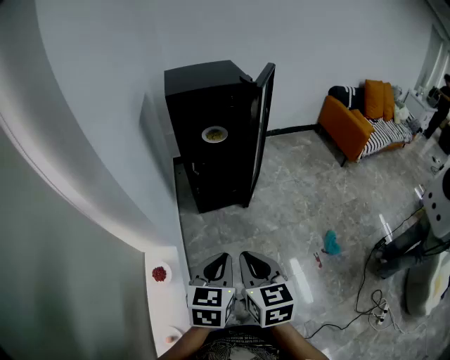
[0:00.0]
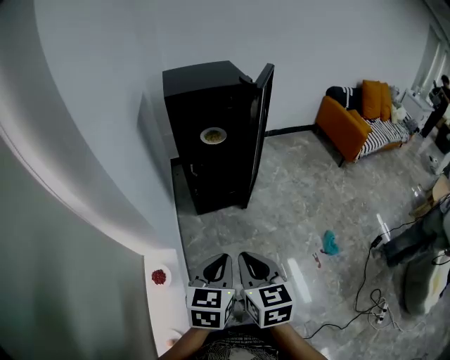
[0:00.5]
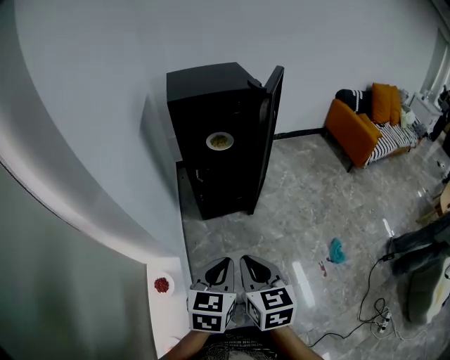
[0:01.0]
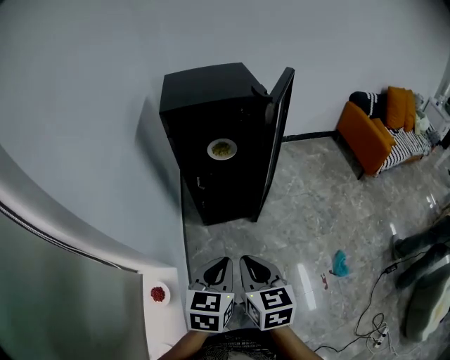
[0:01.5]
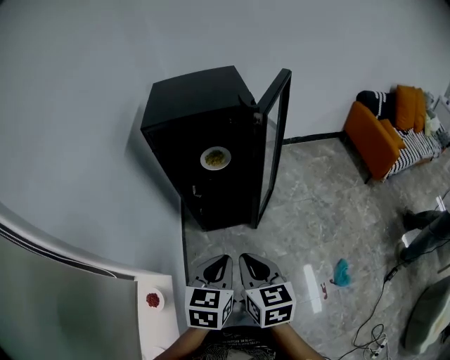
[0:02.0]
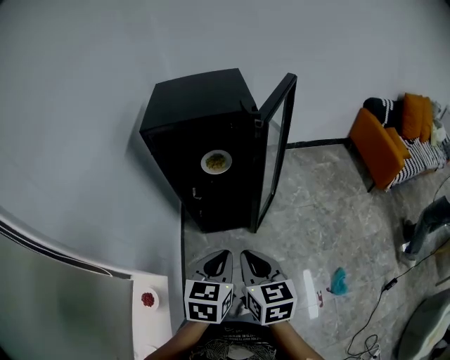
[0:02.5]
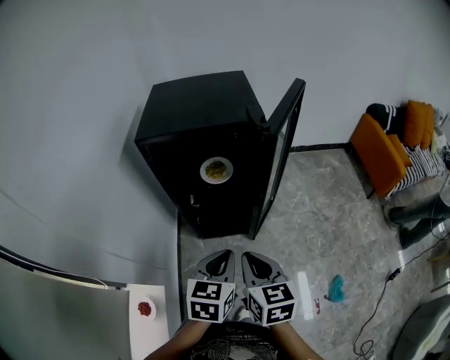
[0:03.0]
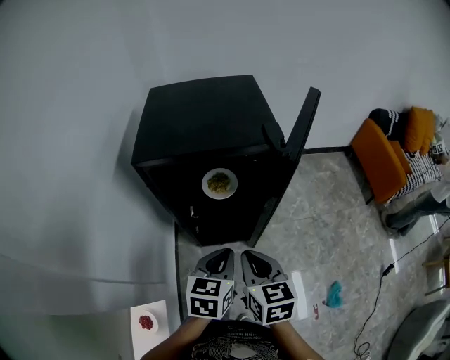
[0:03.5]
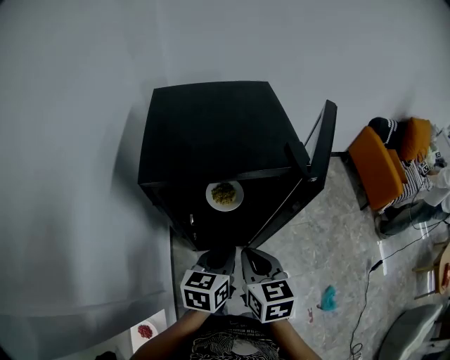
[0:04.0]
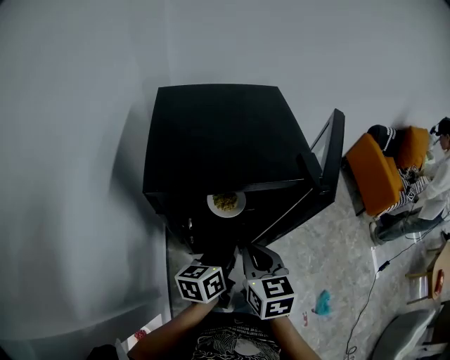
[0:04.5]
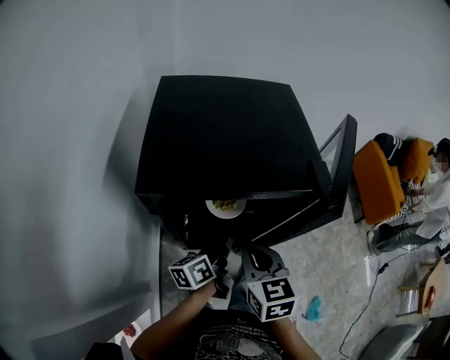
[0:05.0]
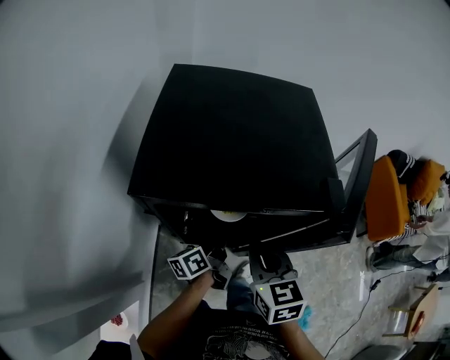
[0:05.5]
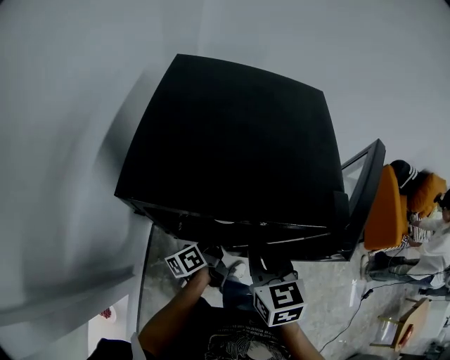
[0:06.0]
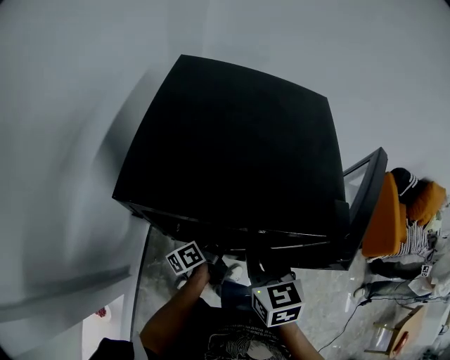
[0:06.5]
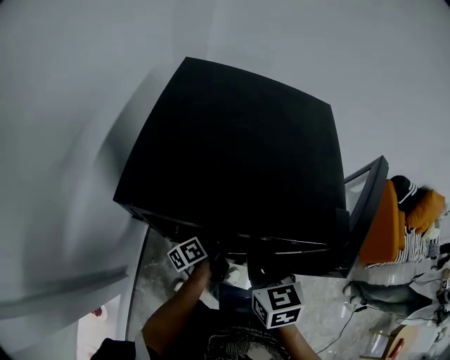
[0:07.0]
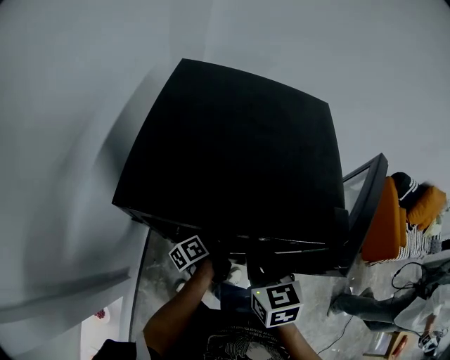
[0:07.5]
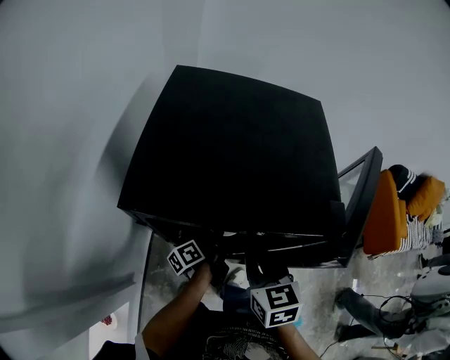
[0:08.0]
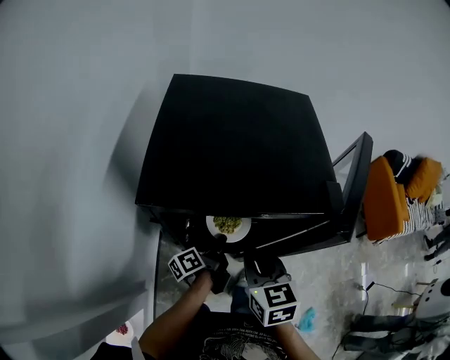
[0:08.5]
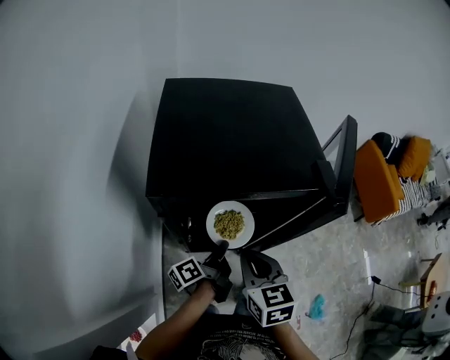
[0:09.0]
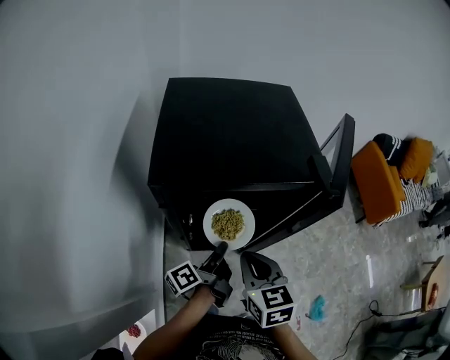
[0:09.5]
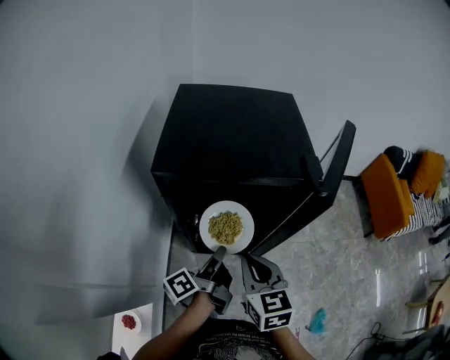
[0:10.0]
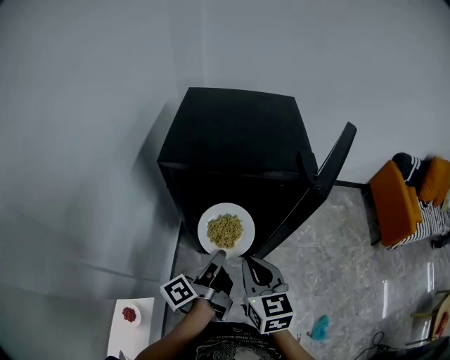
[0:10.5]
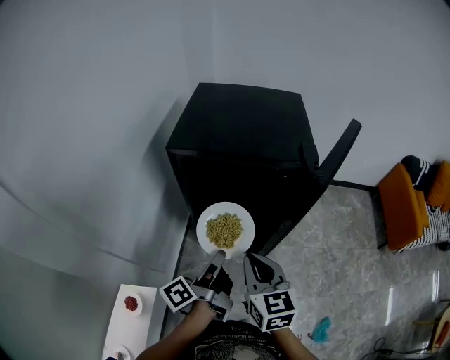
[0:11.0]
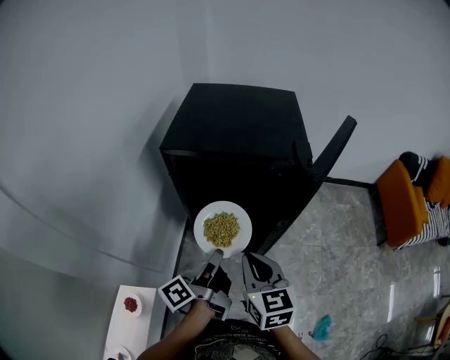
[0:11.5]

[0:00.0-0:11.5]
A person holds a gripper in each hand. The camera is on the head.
0:00.0 to 0:02.0: Both grippers move forward, about 25 cm.
0:02.0 to 0:04.0: The grippers both shift forward by about 30 cm.
0:04.0 to 0:06.0: The left gripper heads downward and forward, covering some 20 cm, and twists approximately 50 degrees counterclockwise, seen from behind; the right gripper goes about 10 cm forward.
0:06.0 to 0:07.5: The grippers make only small movements.
0:07.5 to 0:09.5: The right gripper shifts about 10 cm backward. Meanwhile the left gripper heads backward and upward, covering roughly 20 cm.
0:09.5 to 0:11.5: The left gripper travels backward and upward by some 15 cm, while the right gripper moves backward, some 10 cm.

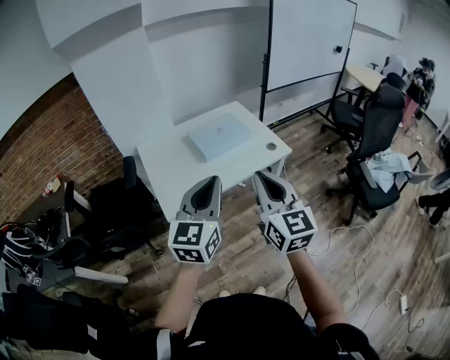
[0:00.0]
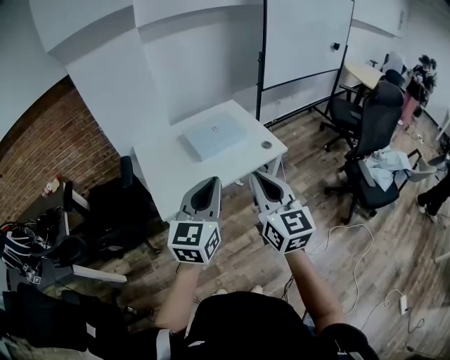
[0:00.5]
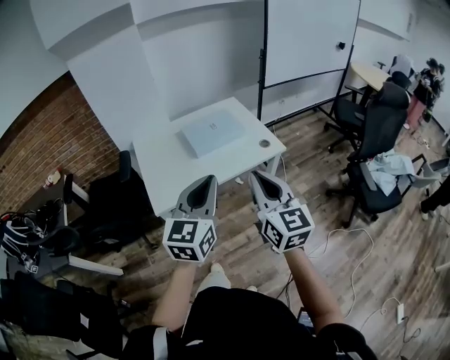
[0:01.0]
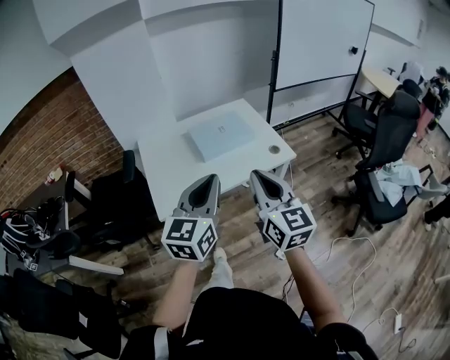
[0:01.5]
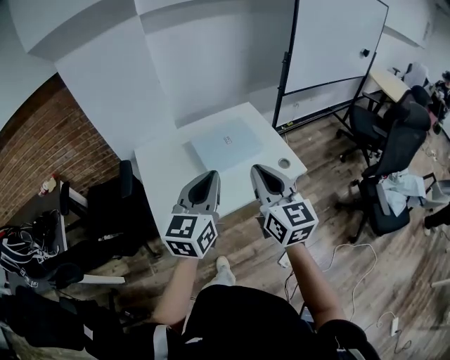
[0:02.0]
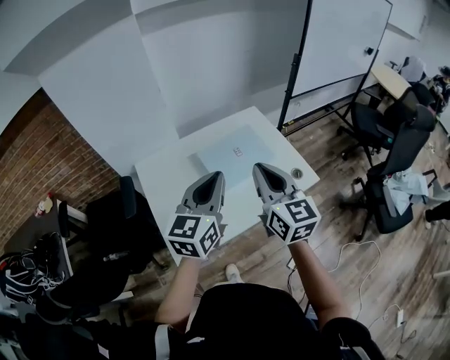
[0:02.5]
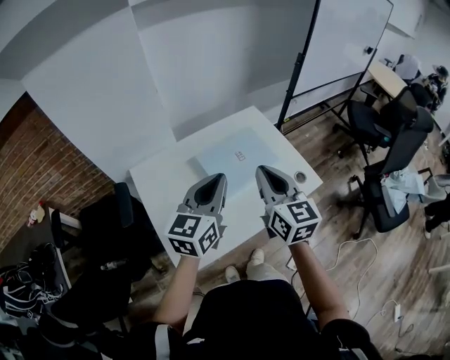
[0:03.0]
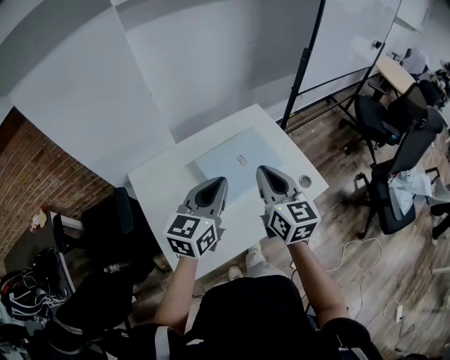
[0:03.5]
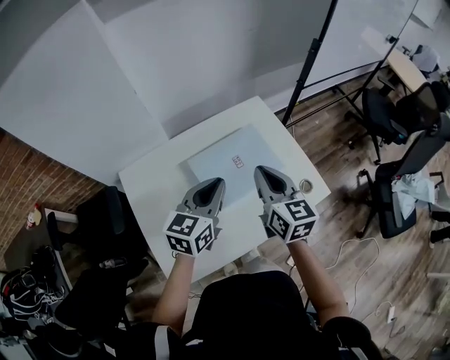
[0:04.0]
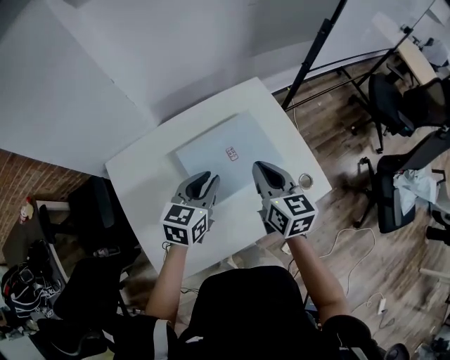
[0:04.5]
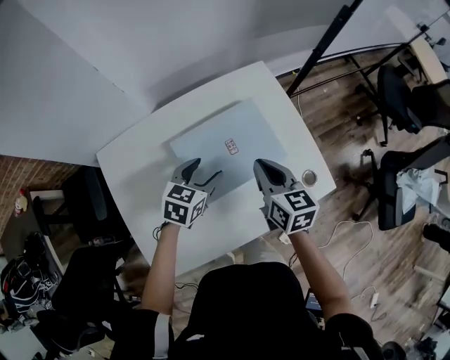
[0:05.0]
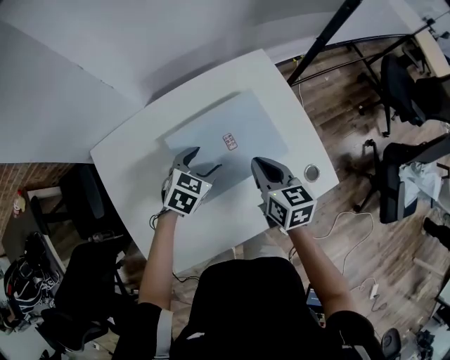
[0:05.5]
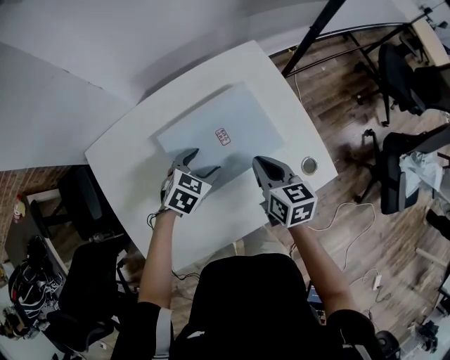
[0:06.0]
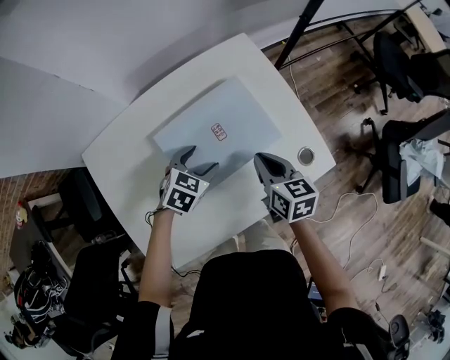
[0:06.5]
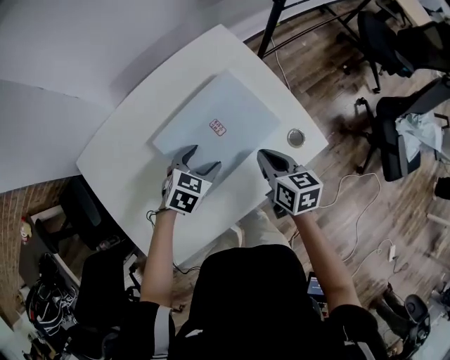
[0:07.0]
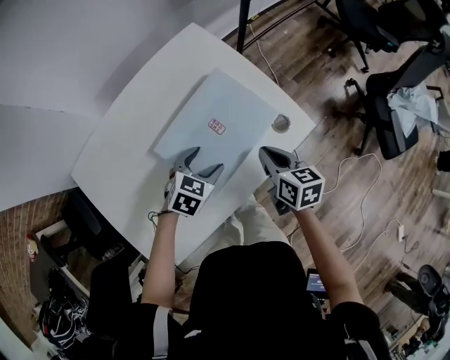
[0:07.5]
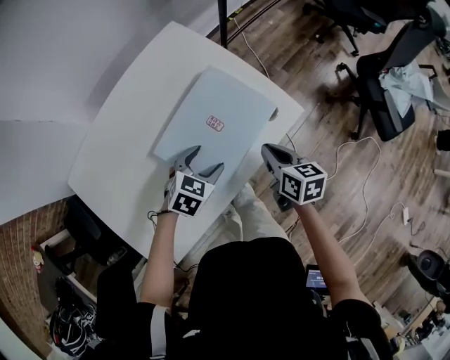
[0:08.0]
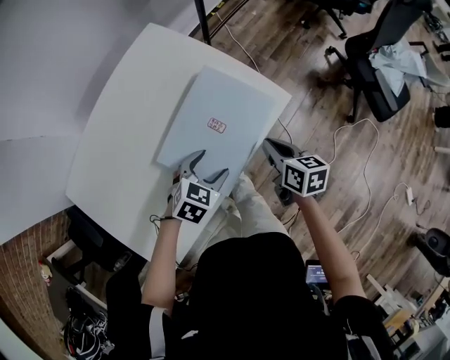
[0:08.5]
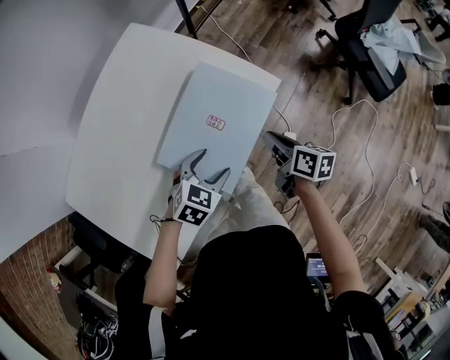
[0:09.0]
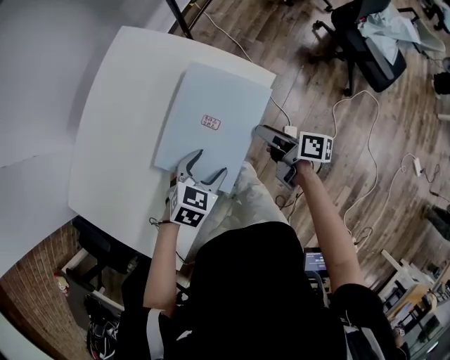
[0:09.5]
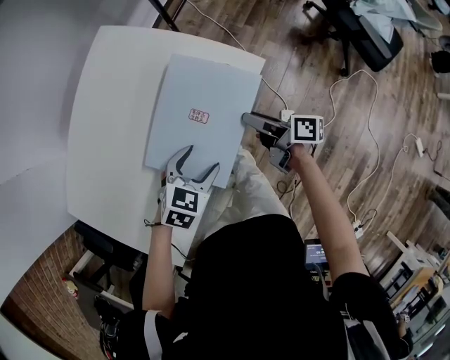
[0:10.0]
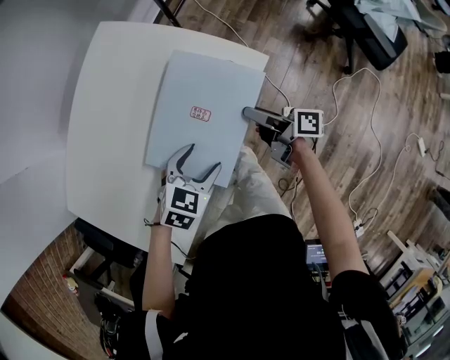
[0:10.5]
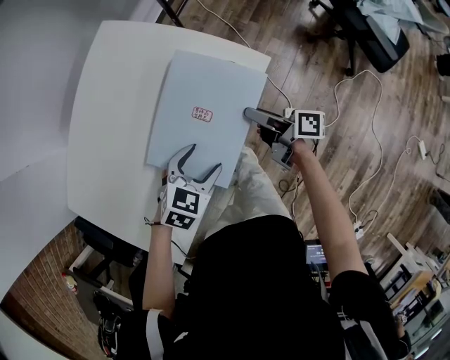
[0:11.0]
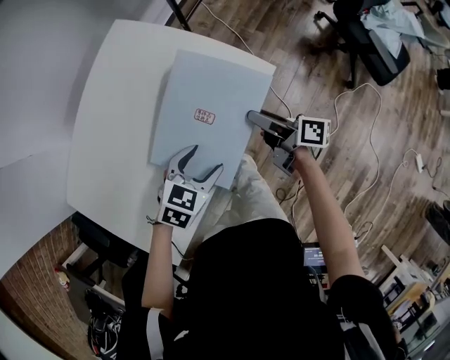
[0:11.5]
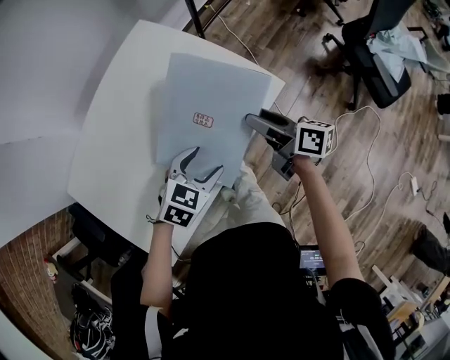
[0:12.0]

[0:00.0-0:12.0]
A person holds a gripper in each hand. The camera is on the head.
0:00.0 to 0:02.0: The two grippers go approximately 20 cm forward.
0:02.0 to 0:04.0: The grippers both shift forward and downward by approximately 30 cm.
0:04.0 to 0:06.0: The grippers both shift downward by roughly 20 cm. The right gripper changes its angle by approximately 20 degrees; the left gripper points its fingers about 40 degrees further downward, and opens its fingers.
0:06.0 to 0:08.0: Both grippers travel together to the right and backward, some 20 cm. The right gripper turns by roughly 20 degrees.
0:08.0 to 0:10.0: The right gripper is displaced to the right and downward by approximately 10 cm, rotates around the line of its fingers by about 40 degrees, clockwise from behind, and opens its fingers; the left gripper shifts roughly 10 cm to the right and backward.
0:10.0 to 0:12.0: The right gripper is displaced upward by some 10 cm.

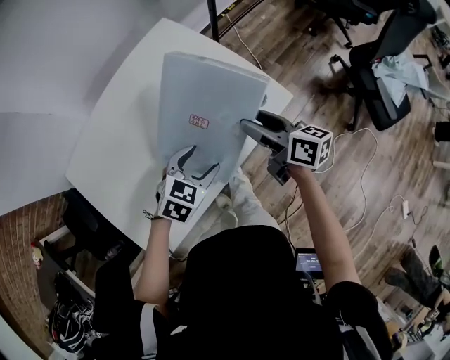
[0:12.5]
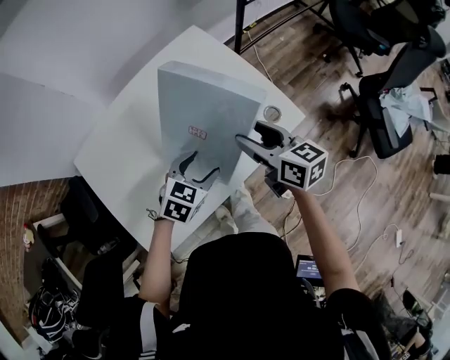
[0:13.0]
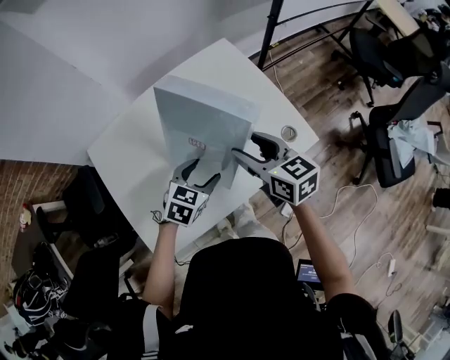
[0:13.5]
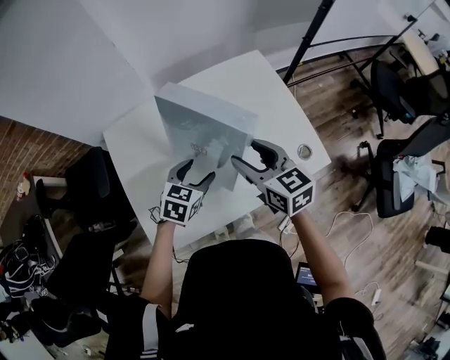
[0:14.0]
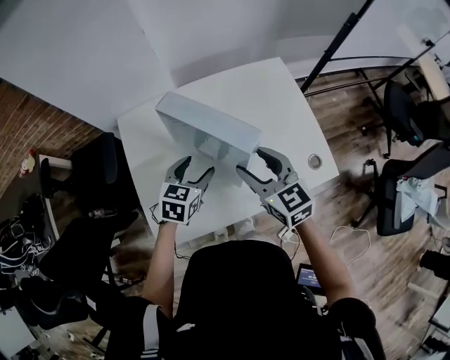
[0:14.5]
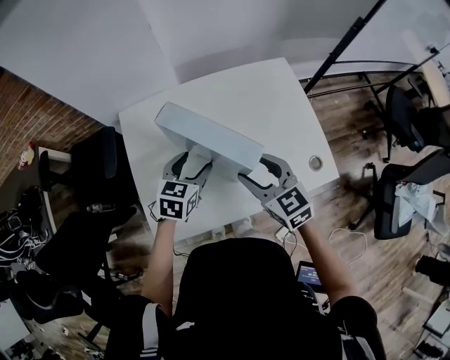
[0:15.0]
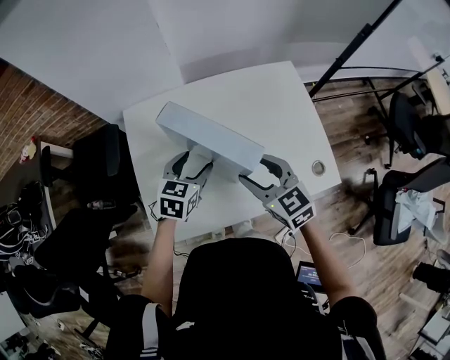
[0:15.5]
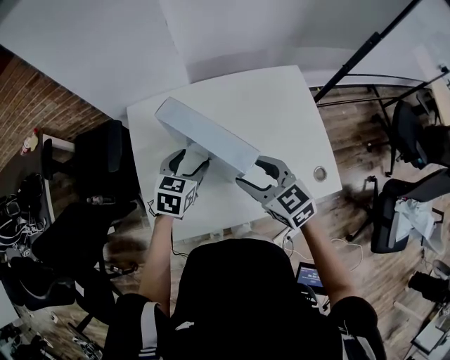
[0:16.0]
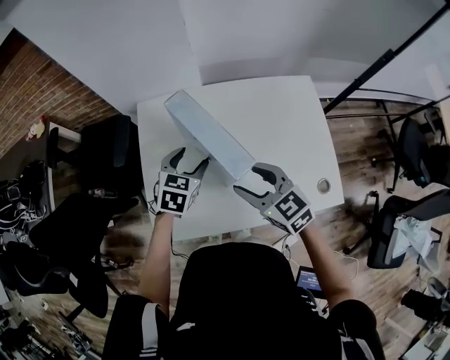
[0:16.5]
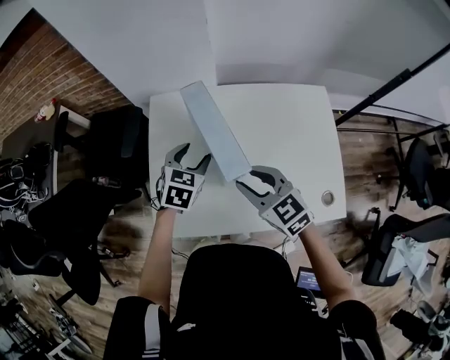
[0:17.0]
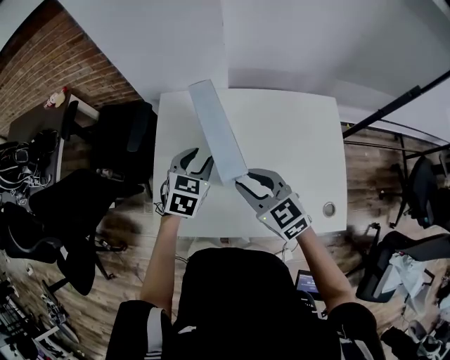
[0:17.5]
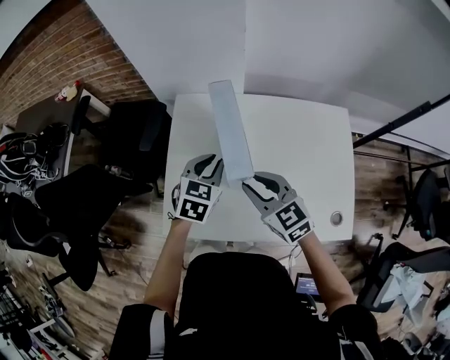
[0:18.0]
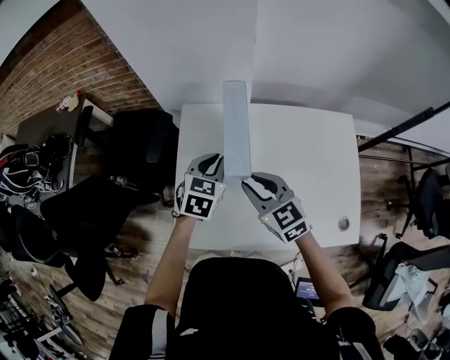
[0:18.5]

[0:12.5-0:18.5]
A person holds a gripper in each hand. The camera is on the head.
0:12.5 to 0:14.5: The left gripper ends up roughly 25 cm from where it was, and changes its angle by about 50 degrees; the right gripper ends up approximately 25 cm from where it was, and rotates around the line of its fingers by approximately 50 degrees, counterclockwise from behind.
0:14.5 to 0:16.5: The two grippers go about 5 cm to the left. The right gripper turns by roughly 20 degrees.
0:16.5 to 0:18.5: The left gripper shifts about 5 cm forward, and closes. The right gripper goes some 10 cm forward and to the left, and closes its fingers.
